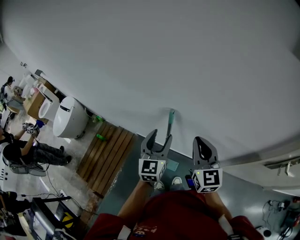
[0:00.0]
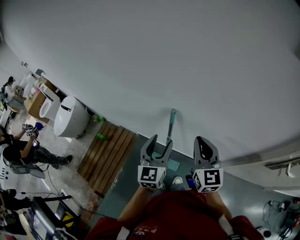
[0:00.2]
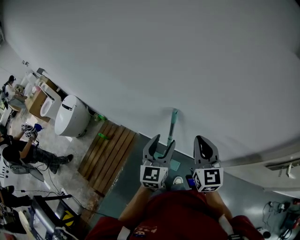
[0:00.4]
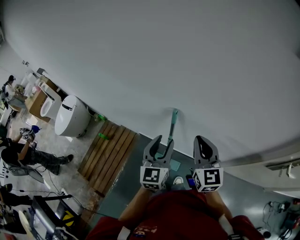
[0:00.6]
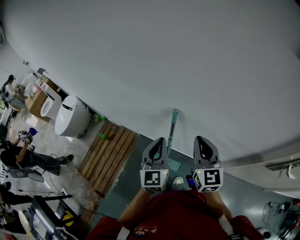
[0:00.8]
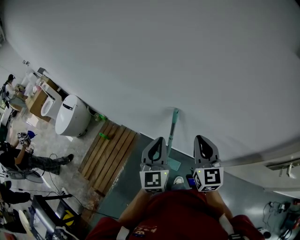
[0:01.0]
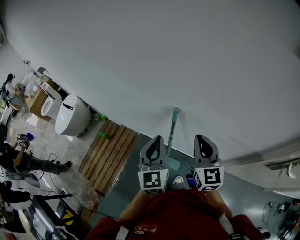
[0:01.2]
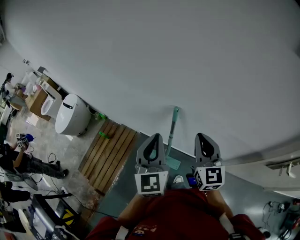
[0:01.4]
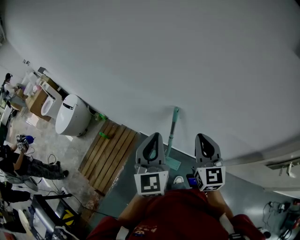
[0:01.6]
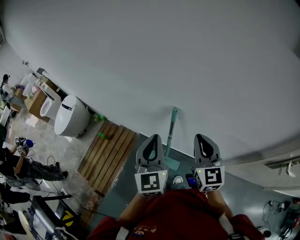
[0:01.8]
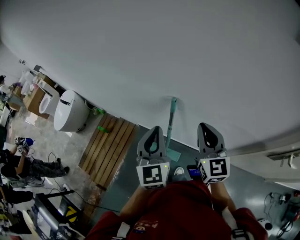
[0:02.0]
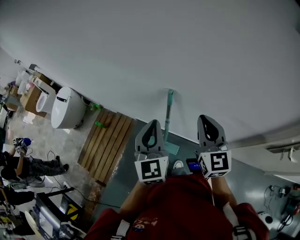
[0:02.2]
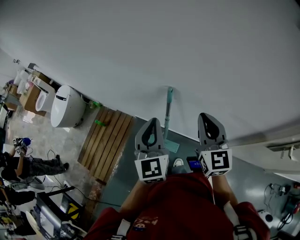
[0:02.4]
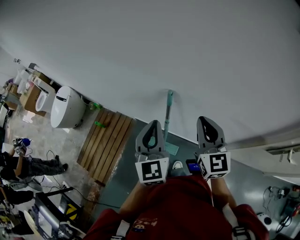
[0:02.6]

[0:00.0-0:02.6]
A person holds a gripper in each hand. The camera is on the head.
0:00.0 to 0:01.2: The left gripper travels upward by about 5 cm, and closes up.
0:01.2 to 0:02.6: The grippers stay close to where they were, moving slightly.

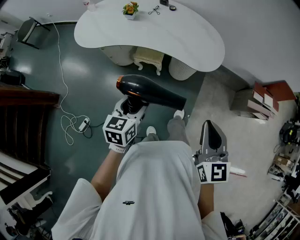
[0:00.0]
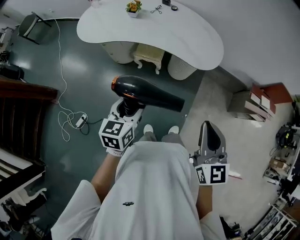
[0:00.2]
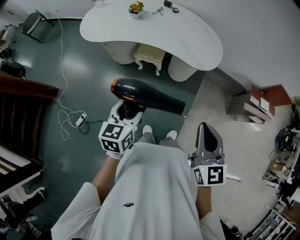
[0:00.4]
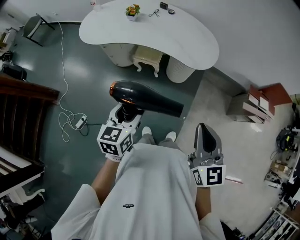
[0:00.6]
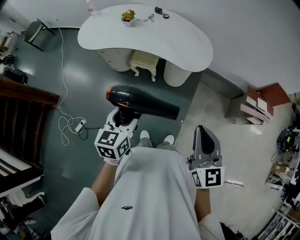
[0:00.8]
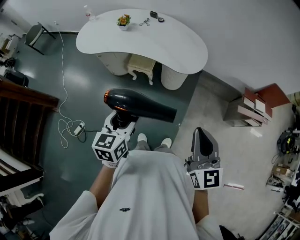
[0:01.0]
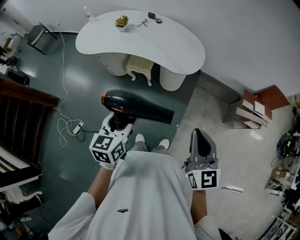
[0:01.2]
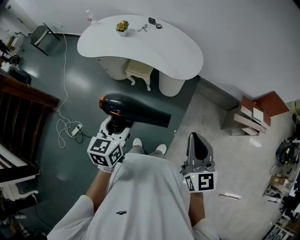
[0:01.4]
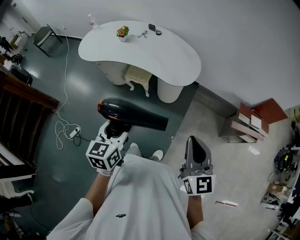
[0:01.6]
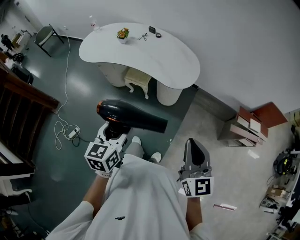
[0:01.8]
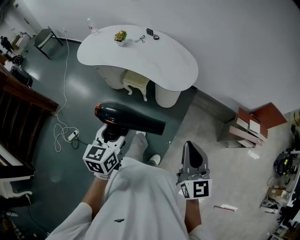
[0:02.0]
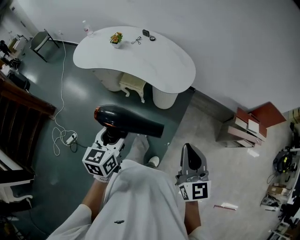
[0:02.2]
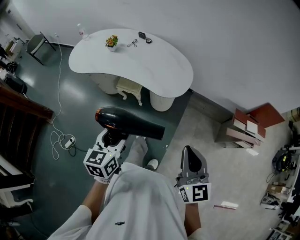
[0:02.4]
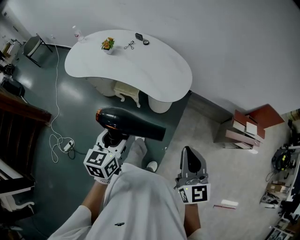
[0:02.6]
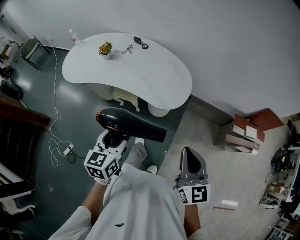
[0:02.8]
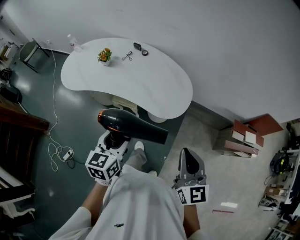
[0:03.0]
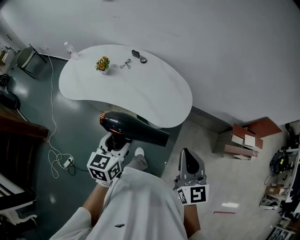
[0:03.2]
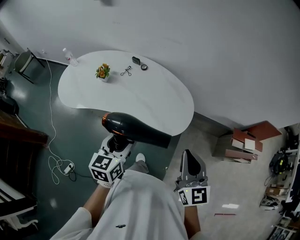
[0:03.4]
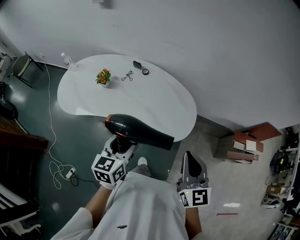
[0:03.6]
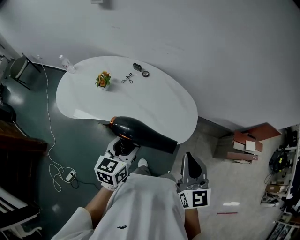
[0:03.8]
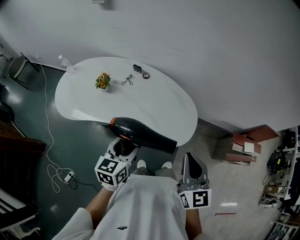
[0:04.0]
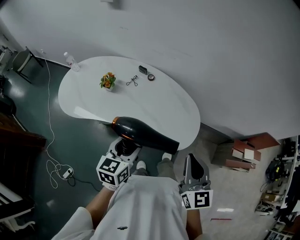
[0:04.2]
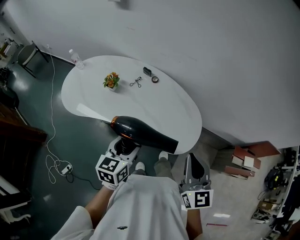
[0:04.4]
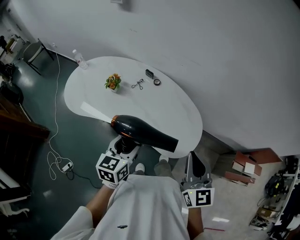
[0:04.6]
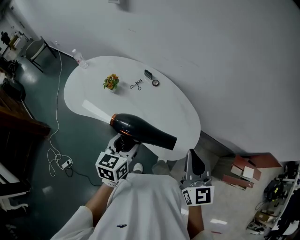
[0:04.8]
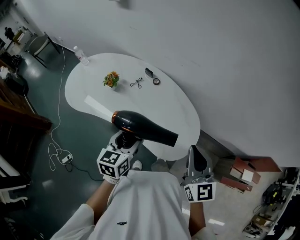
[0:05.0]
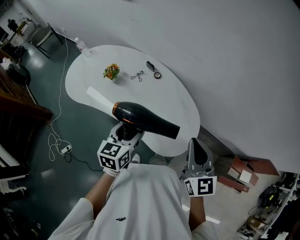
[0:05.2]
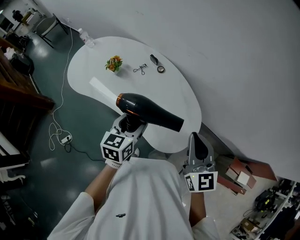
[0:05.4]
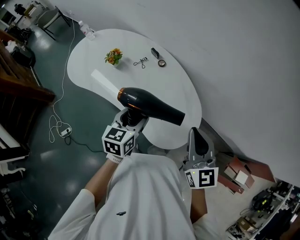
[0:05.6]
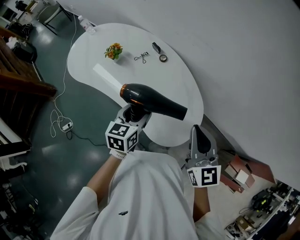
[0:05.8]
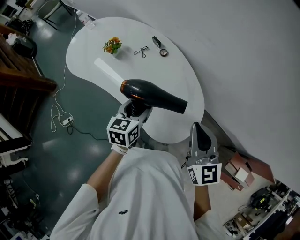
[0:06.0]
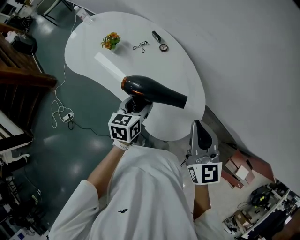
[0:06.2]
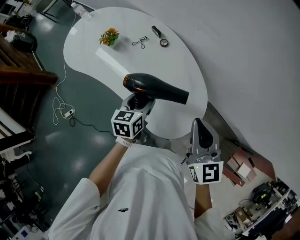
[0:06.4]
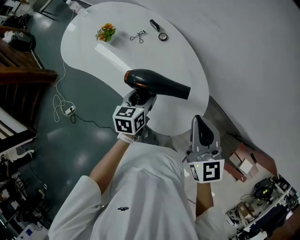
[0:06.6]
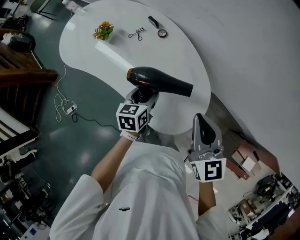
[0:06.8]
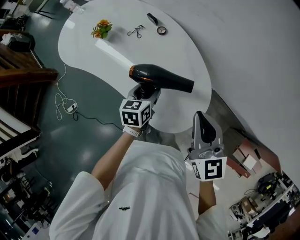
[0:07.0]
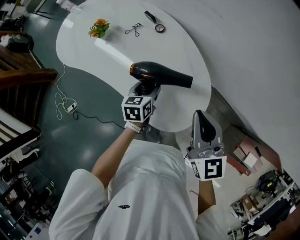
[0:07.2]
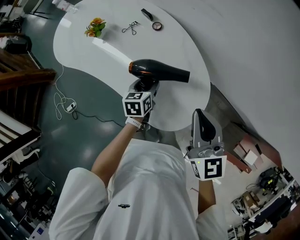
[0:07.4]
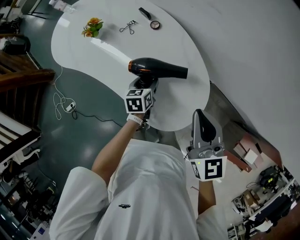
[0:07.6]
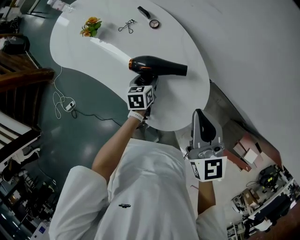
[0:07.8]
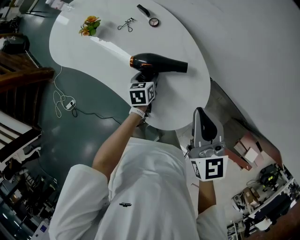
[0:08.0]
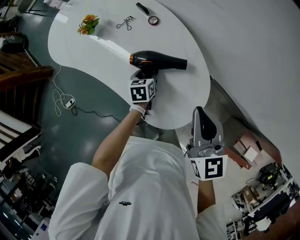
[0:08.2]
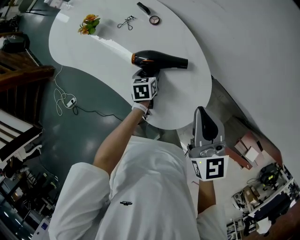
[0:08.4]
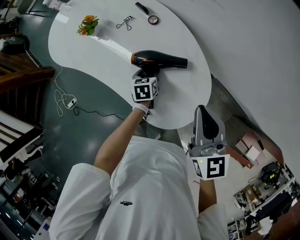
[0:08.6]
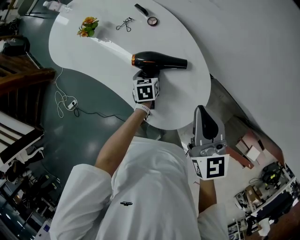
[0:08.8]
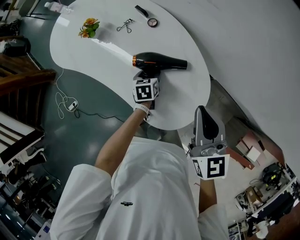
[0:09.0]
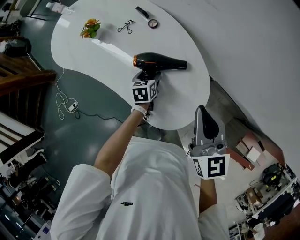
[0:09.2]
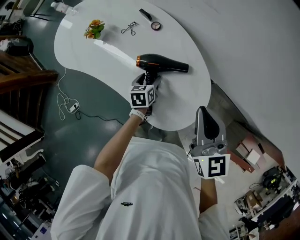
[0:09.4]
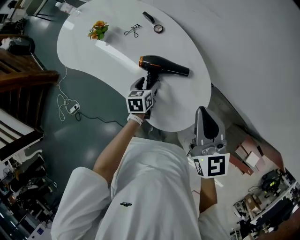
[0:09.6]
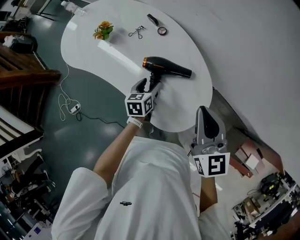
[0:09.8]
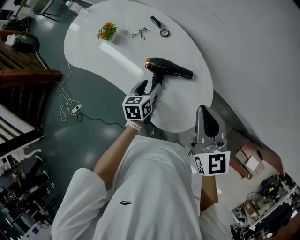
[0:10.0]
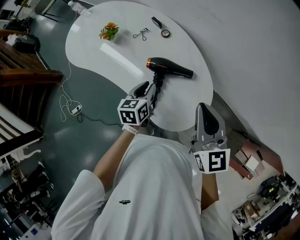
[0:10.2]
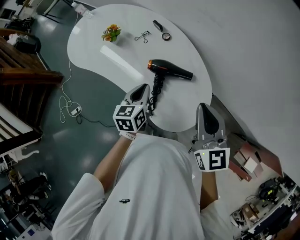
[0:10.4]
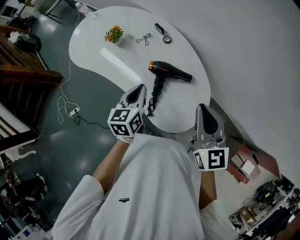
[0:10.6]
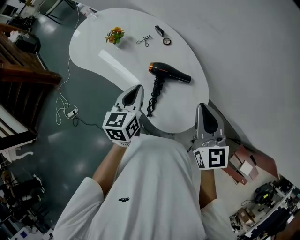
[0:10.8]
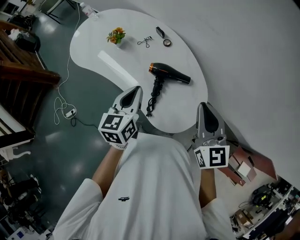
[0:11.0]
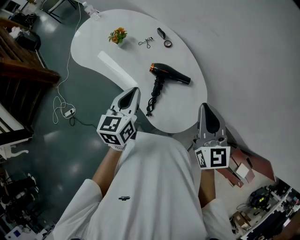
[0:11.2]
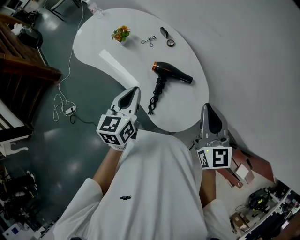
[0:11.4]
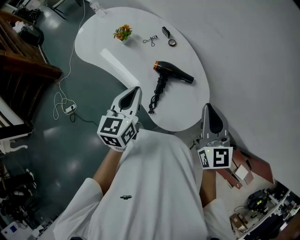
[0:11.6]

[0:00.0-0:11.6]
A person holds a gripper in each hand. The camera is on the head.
0:00.0 to 0:01.4: The right gripper is displaced to the right and backward by approximately 15 cm. The left gripper goes approximately 20 cm backward, to the right and upward.
0:01.4 to 0:02.8: Both grippers travel together forward, about 15 cm.
0:02.8 to 0:04.4: The right gripper shifts about 25 cm forward and to the left. The left gripper heads forward, covering about 20 cm.
0:04.4 to 0:05.8: The right gripper shifts roughly 20 cm forward and to the right, and changes its angle by about 20 degrees; the left gripper goes some 15 cm forward, to the right and downward.
0:05.8 to 0:07.2: The right gripper heads downward, covering some 5 cm. The left gripper travels downward by about 15 cm.
0:07.2 to 0:08.8: The left gripper shifts approximately 10 cm downward.
0:08.8 to 0:10.2: The left gripper moves upward, approximately 15 cm, turns by about 20 degrees, and closes its fingers. Meanwhile the right gripper moves approximately 5 cm.
0:10.2 to 0:11.6: The left gripper goes roughly 20 cm upward. The right gripper changes place by some 5 cm.

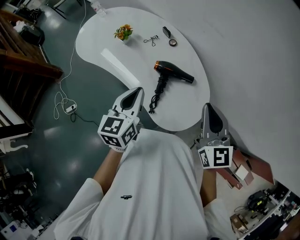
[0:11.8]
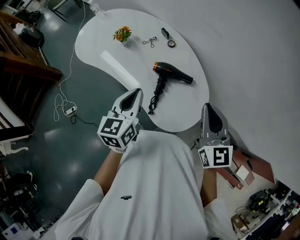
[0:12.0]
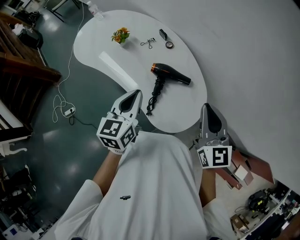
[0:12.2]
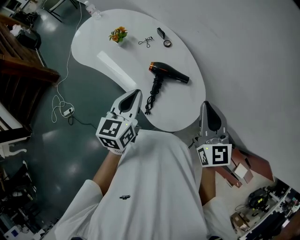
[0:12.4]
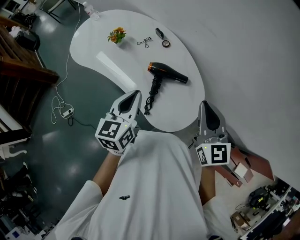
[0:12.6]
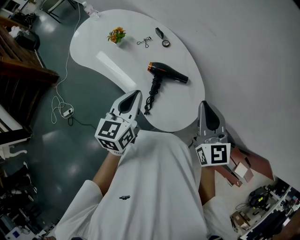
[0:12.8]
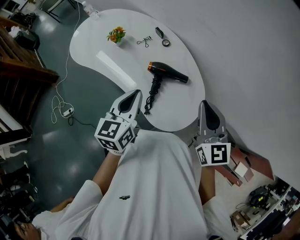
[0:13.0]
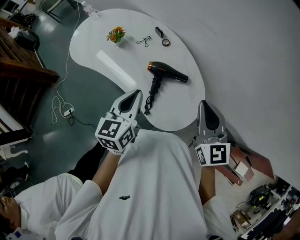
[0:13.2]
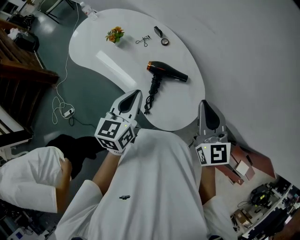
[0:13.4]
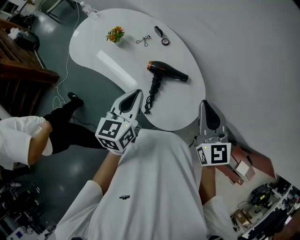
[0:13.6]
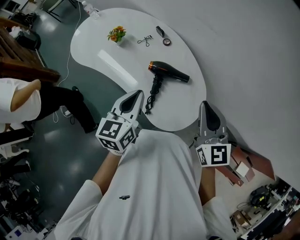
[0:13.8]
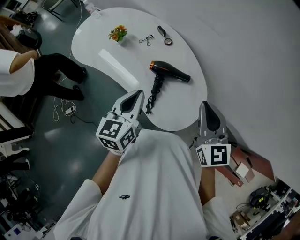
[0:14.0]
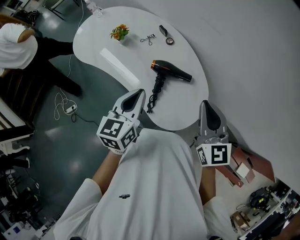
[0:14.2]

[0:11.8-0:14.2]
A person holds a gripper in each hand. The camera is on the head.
0:11.8 to 0:13.0: The grippers make only small movements.
0:13.0 to 0:14.2: Both grippers stay put.

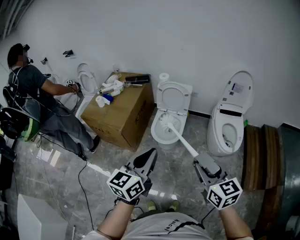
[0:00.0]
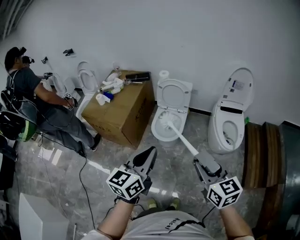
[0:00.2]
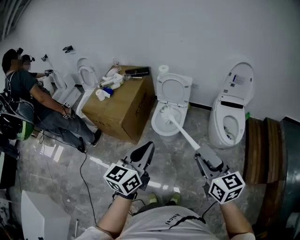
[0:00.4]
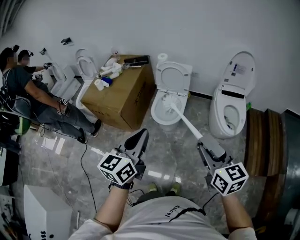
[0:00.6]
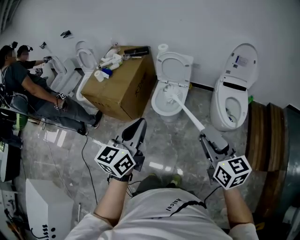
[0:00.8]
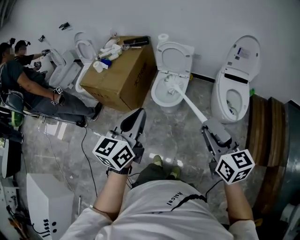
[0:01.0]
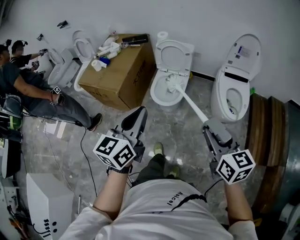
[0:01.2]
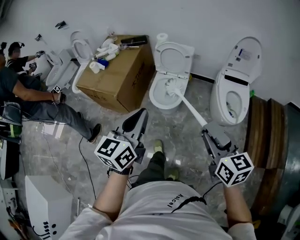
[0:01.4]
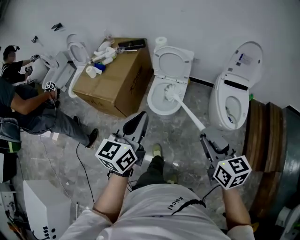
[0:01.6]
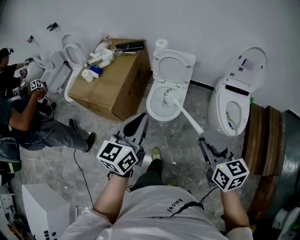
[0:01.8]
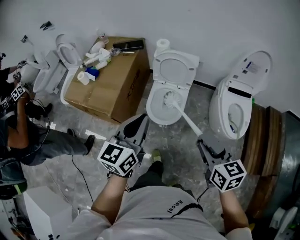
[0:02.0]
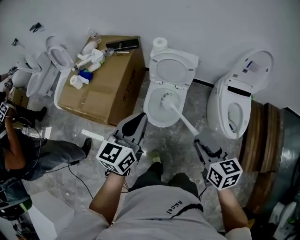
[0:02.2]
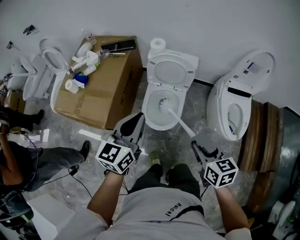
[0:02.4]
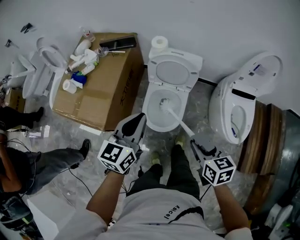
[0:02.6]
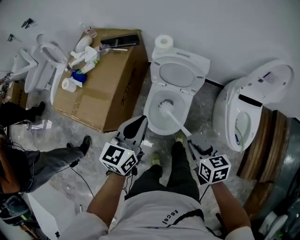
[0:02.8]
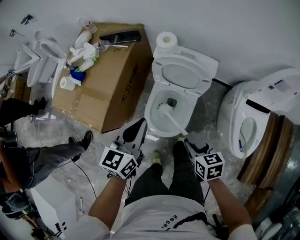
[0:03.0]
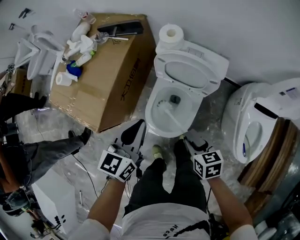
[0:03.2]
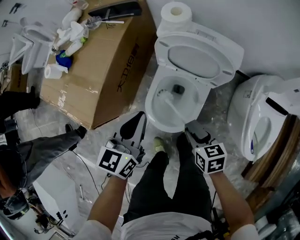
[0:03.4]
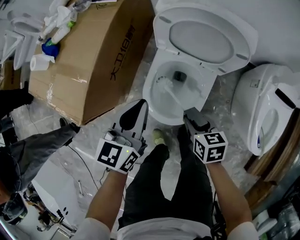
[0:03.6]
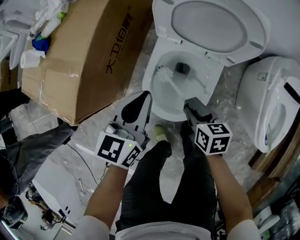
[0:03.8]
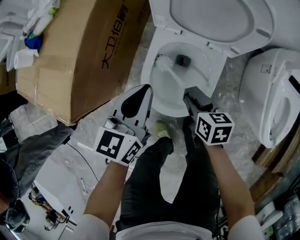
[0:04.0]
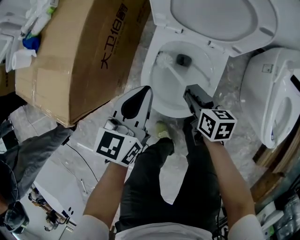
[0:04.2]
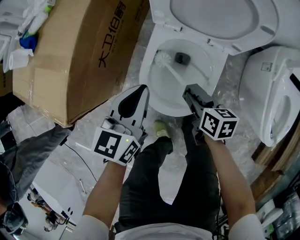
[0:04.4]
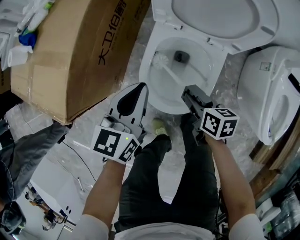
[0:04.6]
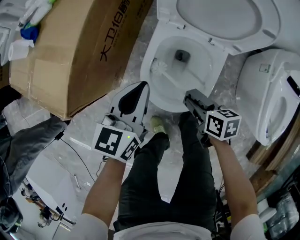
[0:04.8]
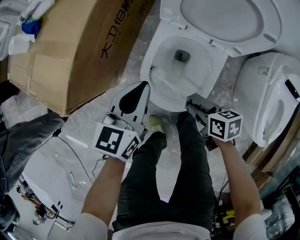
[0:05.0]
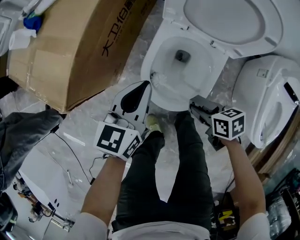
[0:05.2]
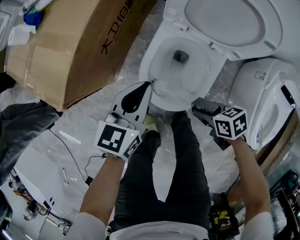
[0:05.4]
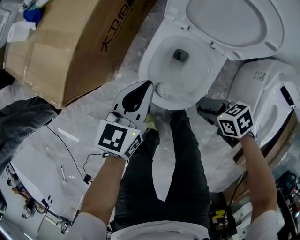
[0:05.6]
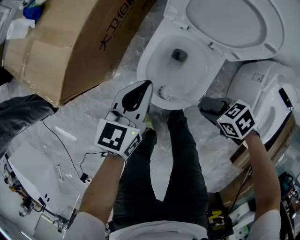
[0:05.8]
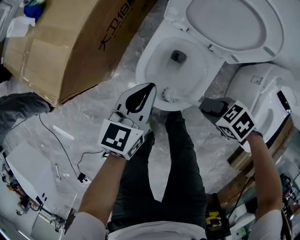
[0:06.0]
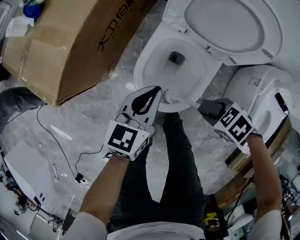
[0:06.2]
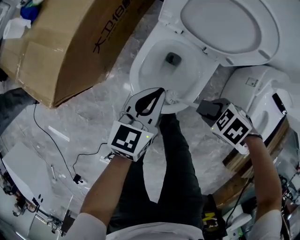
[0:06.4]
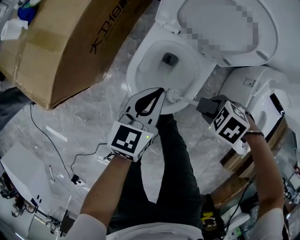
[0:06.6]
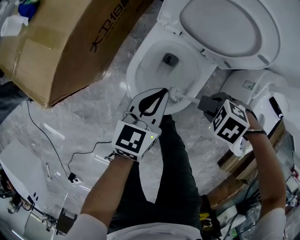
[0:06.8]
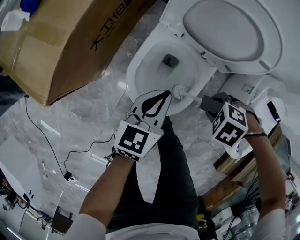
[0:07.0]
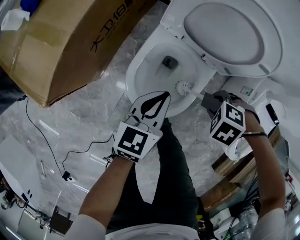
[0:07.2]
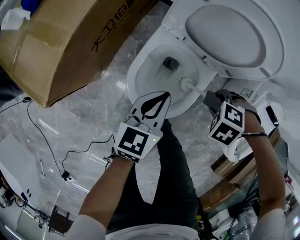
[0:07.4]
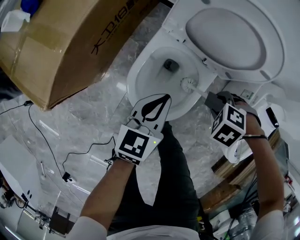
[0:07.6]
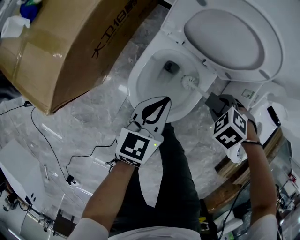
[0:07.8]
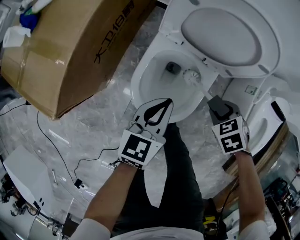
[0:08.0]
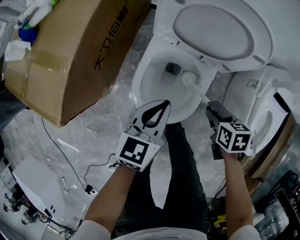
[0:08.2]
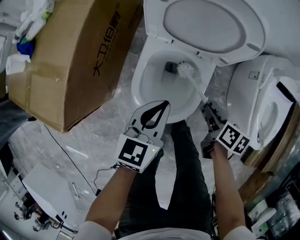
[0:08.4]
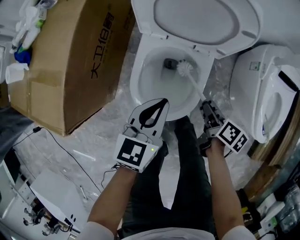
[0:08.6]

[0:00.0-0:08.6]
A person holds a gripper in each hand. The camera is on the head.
0:00.0 to 0:01.4: The right gripper goes some 5 cm to the right. The left gripper ends up about 5 cm from where it was.
0:01.4 to 0:02.8: The grippers both shift forward and downward by some 40 cm. The right gripper rotates approximately 30 degrees.
0:02.8 to 0:04.4: The two grippers go some 35 cm downward.
0:04.4 to 0:05.8: The right gripper changes place by some 10 cm, and swivels approximately 60 degrees.
0:05.8 to 0:07.2: The right gripper ends up roughly 10 cm from where it was, and turns by approximately 50 degrees. The left gripper moves roughly 10 cm.
0:07.2 to 0:08.6: The right gripper shifts by roughly 5 cm, and twists some 120 degrees clockwise, seen from behind.
